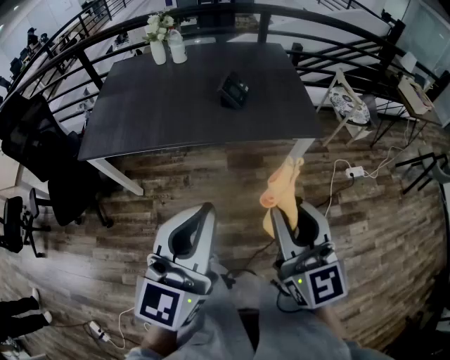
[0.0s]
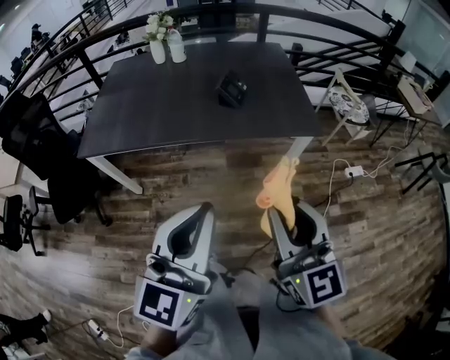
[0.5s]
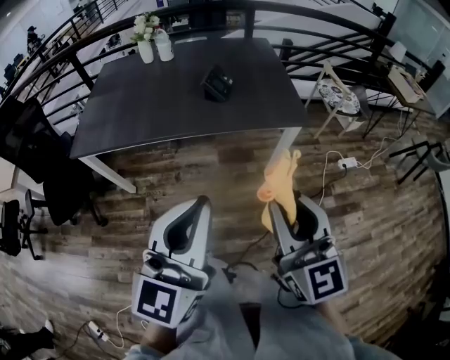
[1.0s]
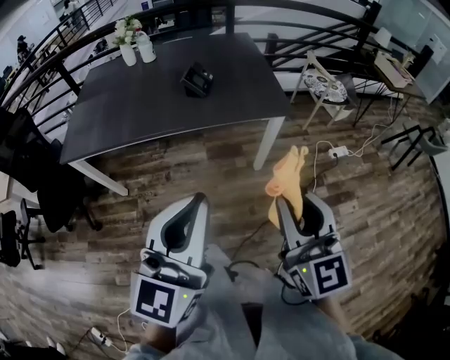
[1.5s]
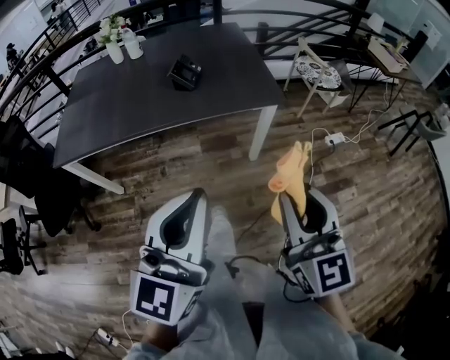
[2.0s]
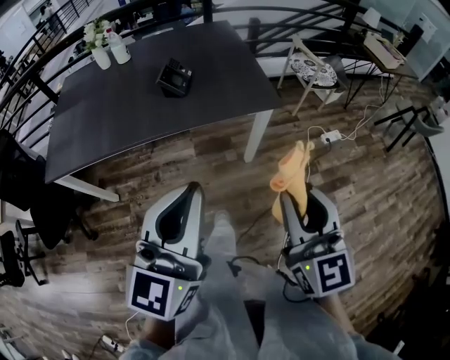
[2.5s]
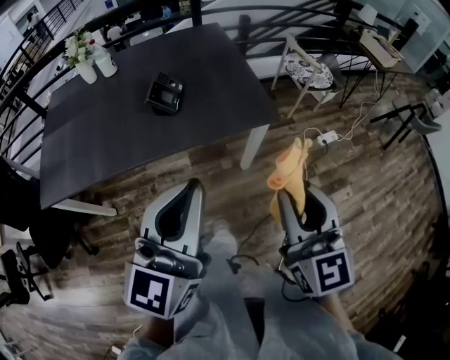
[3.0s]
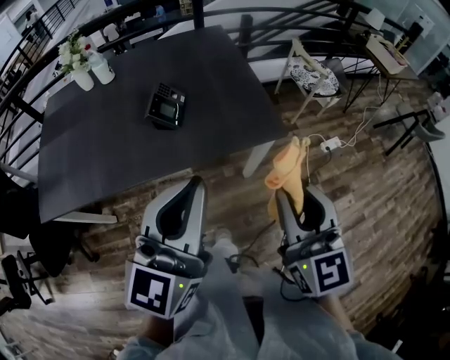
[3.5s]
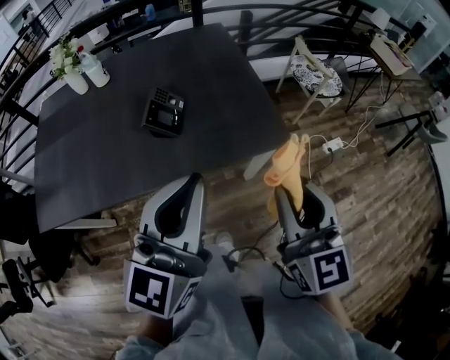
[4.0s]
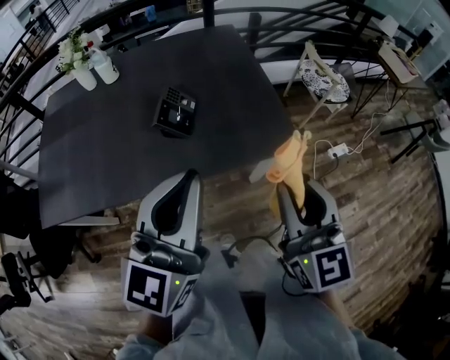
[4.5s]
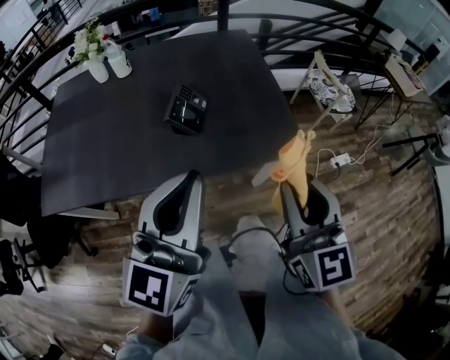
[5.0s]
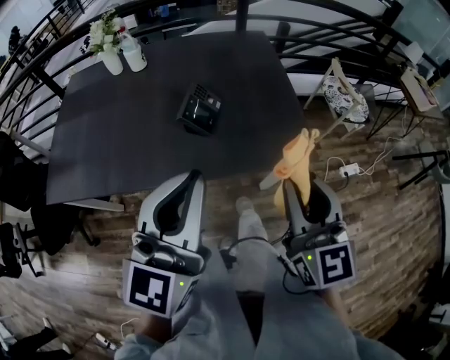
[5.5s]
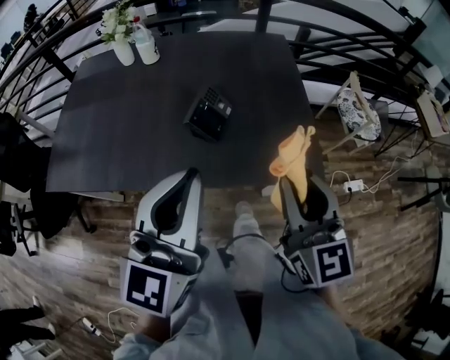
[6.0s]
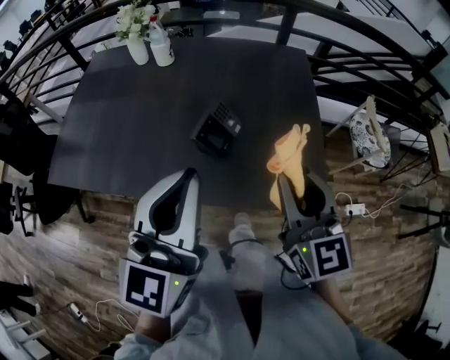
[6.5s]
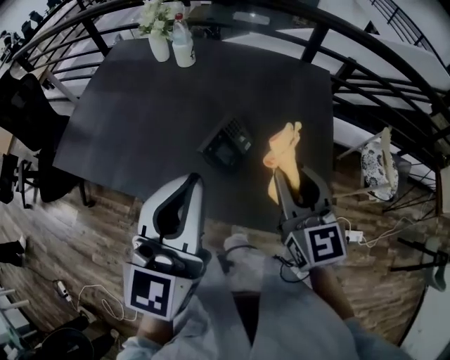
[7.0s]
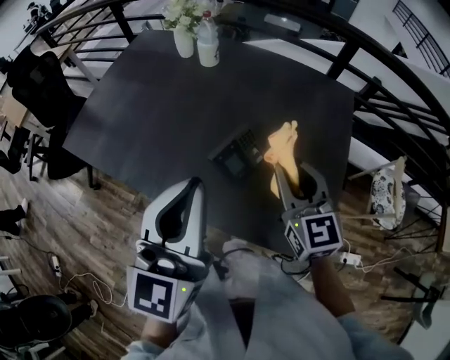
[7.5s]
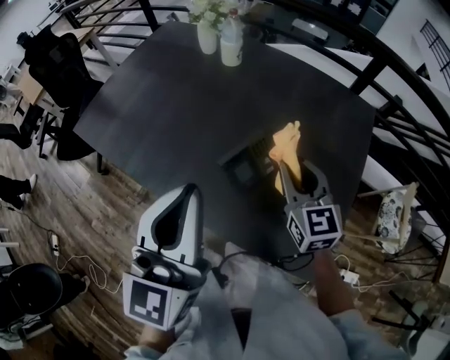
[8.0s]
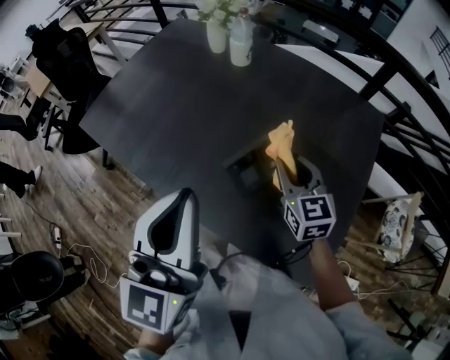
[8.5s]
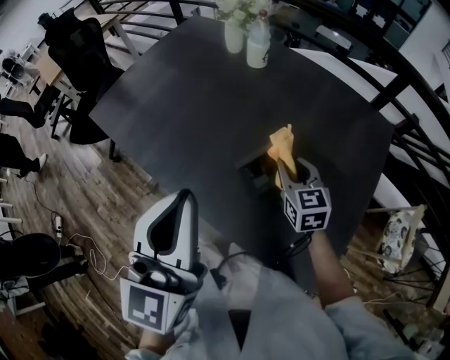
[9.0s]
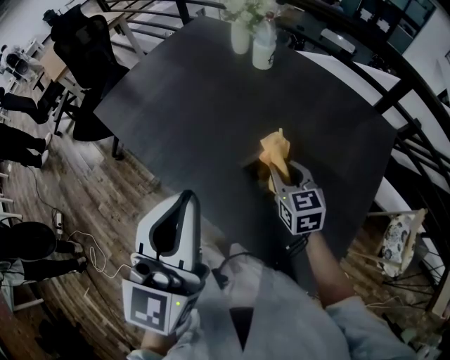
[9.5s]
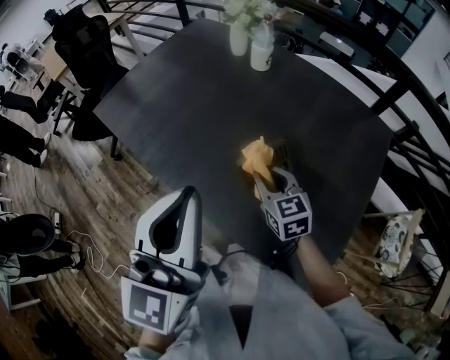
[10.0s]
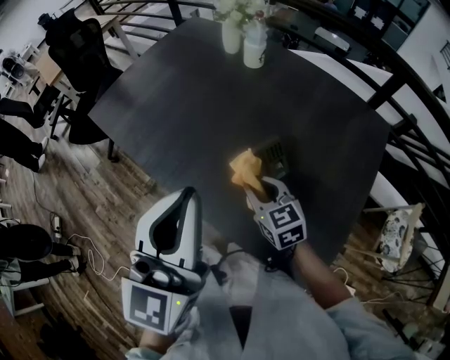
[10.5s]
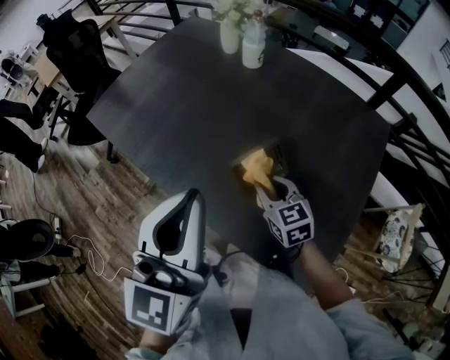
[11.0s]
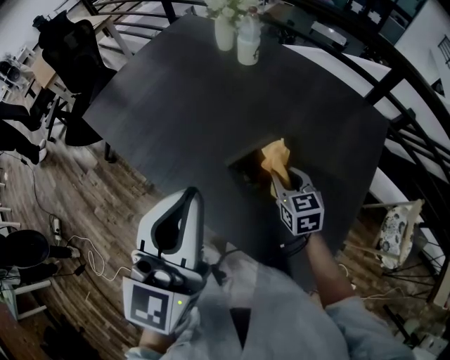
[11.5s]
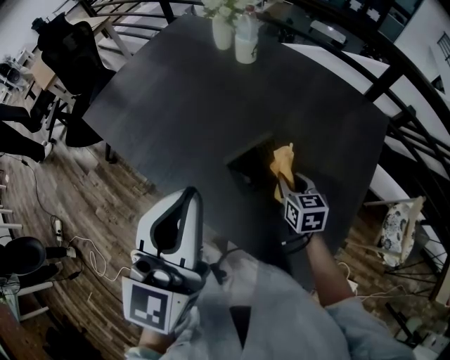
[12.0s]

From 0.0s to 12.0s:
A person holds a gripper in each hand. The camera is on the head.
From 0.0s to 2.0s: Both grippers travel together to the right, roughly 10 cm.
From 2.0s to 4.0s: Both grippers travel together forward, some 25 cm.
From 4.0s to 6.0s: The left gripper shifts some 5 cm to the left, while the right gripper is displaced forward and to the left by some 10 cm.
From 6.0s to 8.0s: The right gripper changes place by roughly 30 cm, and turns by approximately 30 degrees, while the left gripper moves approximately 15 cm, and swivels roughly 30 degrees.
From 8.0s to 10.0s: The right gripper goes some 15 cm to the left and downward, and turns by roughly 20 degrees.
From 10.0s to 12.0s: The right gripper heads to the right and downward, covering roughly 15 cm.

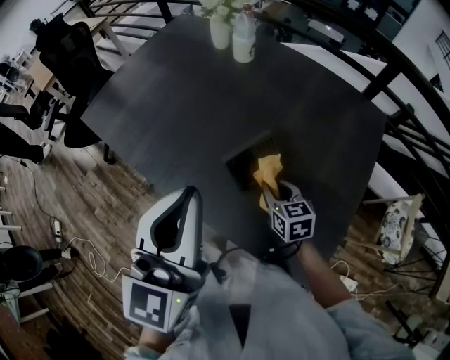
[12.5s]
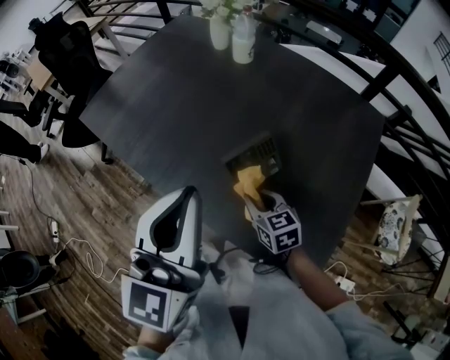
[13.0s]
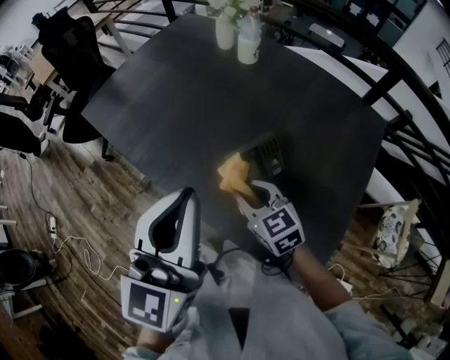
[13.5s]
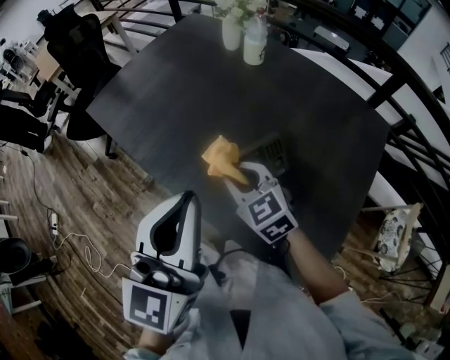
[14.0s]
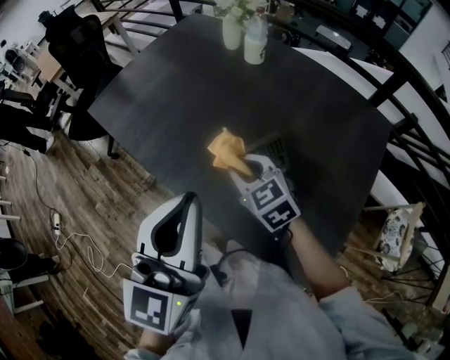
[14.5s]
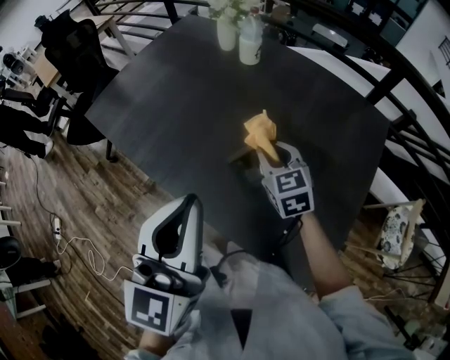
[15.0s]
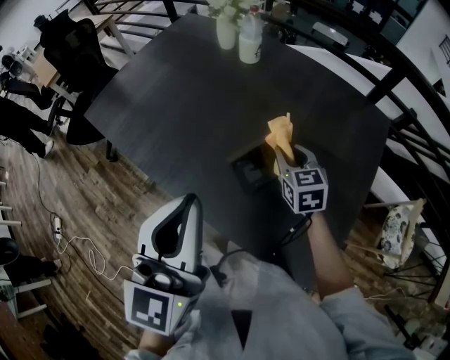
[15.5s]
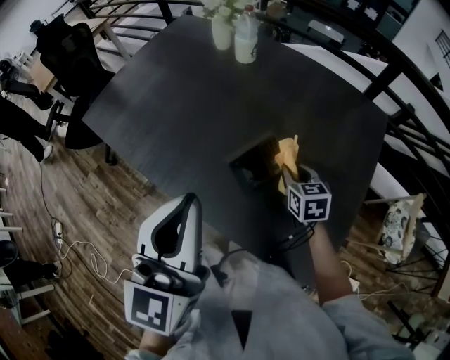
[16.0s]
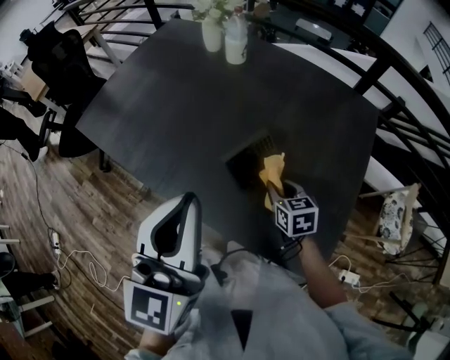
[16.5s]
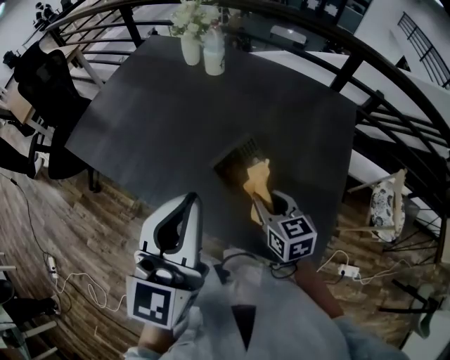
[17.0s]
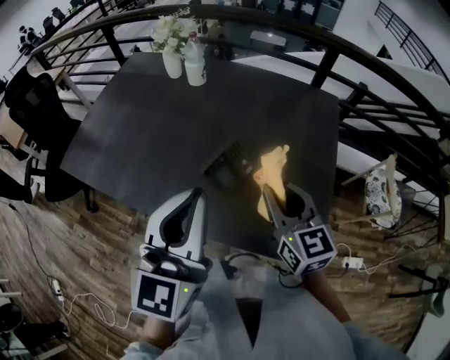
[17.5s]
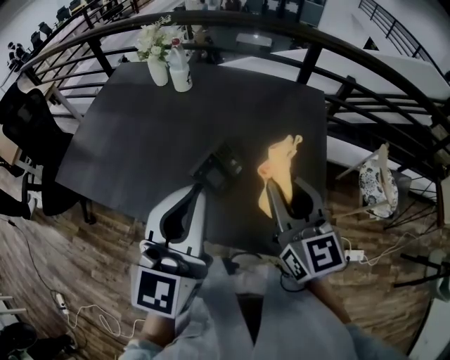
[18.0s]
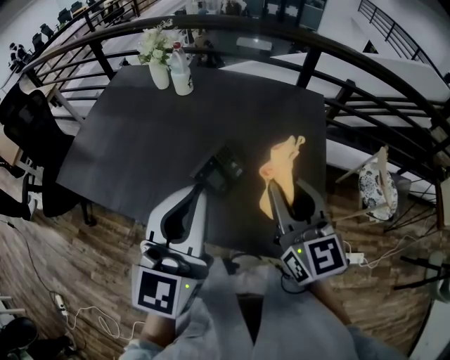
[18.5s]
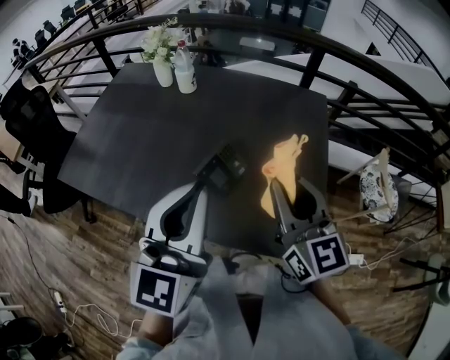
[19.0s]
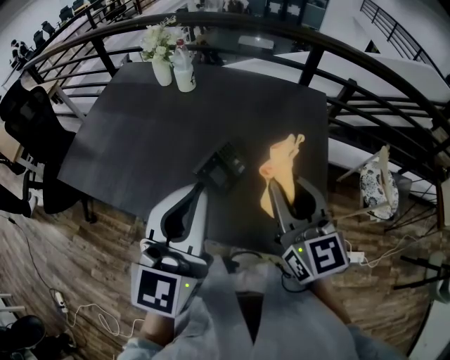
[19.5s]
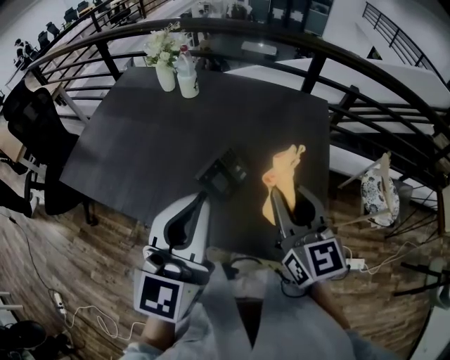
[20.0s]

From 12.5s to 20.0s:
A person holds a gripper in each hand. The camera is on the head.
From 12.5s to 14.5s: The right gripper heads to the left, upward and forward, covering about 15 cm, and rotates roughly 30 degrees.
From 14.5s to 16.5s: The right gripper goes some 15 cm to the right and downward, and rotates some 40 degrees.
From 16.5s to 18.0s: The left gripper is displaced to the right by roughly 5 cm, while the right gripper is displaced upward by approximately 25 cm, and angles its fingers upward, by about 40 degrees.
From 18.0s to 20.0s: The grippers stay close to where they were, moving slightly.

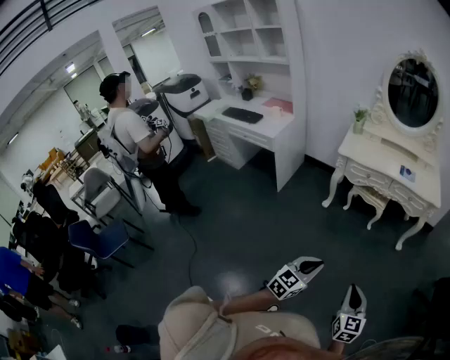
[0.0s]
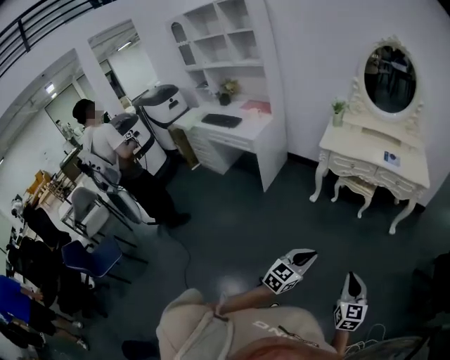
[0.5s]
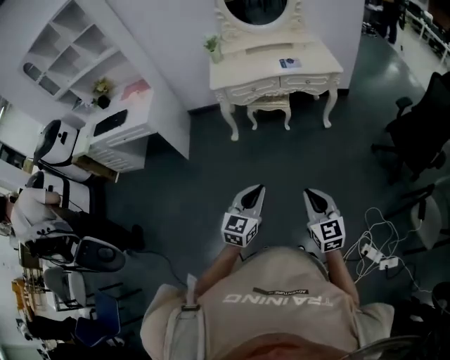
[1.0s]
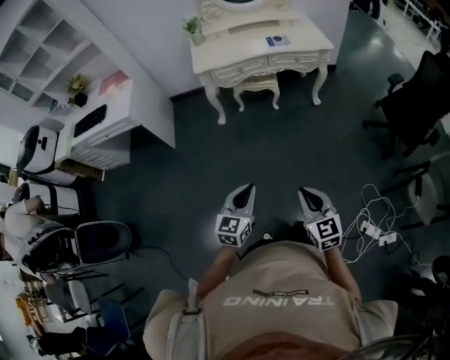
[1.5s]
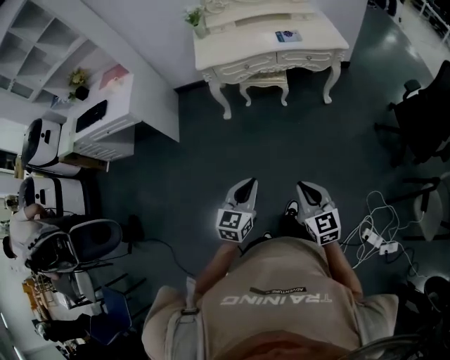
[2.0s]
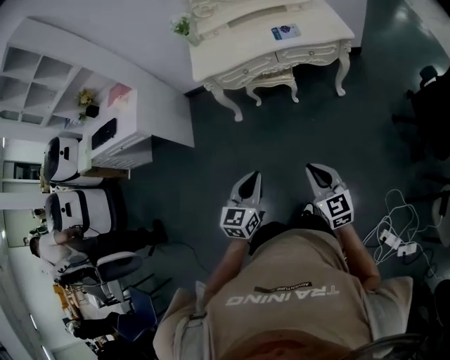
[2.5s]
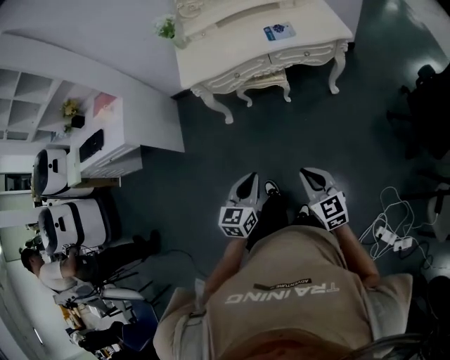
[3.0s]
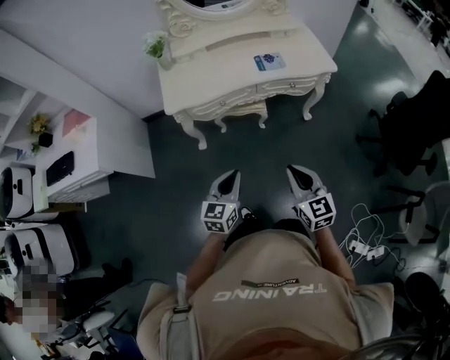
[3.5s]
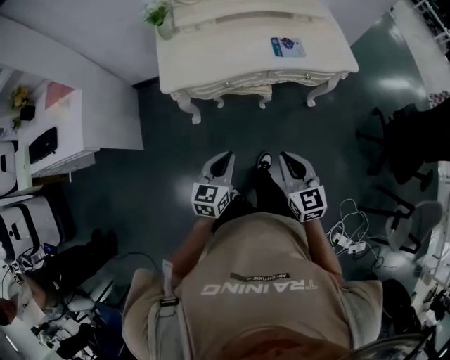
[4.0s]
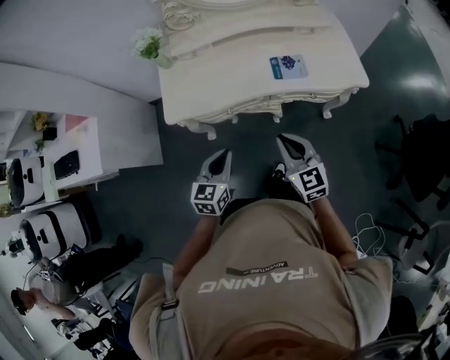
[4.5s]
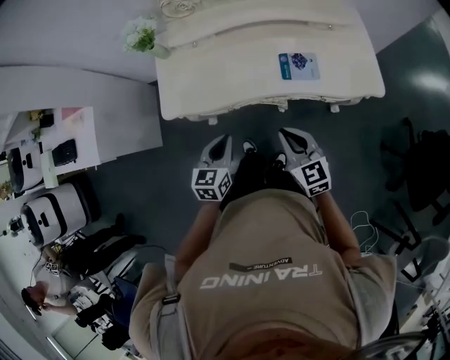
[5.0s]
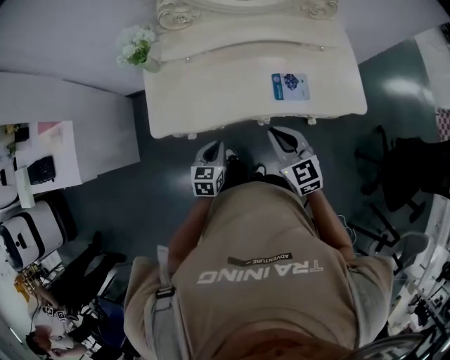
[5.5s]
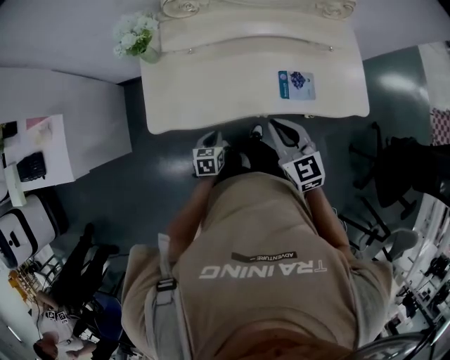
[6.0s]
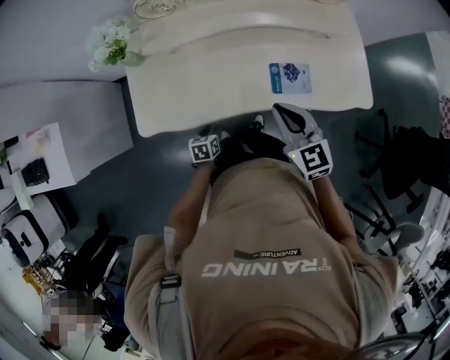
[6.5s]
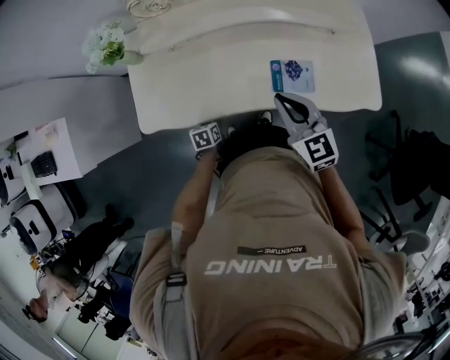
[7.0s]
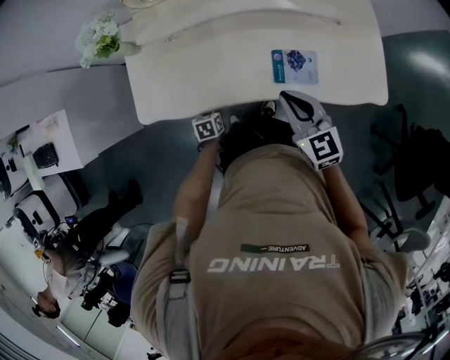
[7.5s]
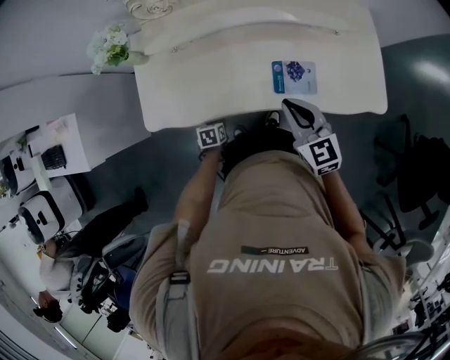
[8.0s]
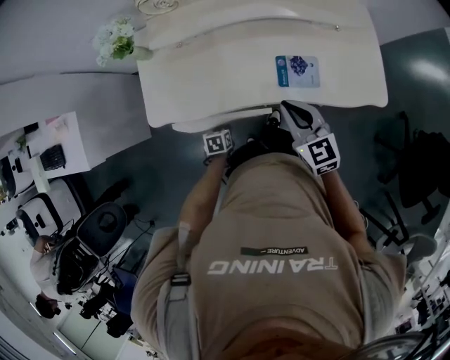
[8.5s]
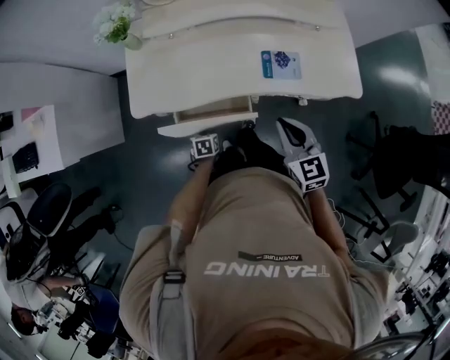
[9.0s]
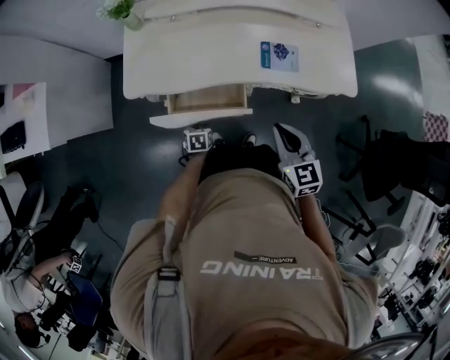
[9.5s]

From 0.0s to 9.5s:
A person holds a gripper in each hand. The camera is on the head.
From 0.0s to 2.0s: The two grippers go approximately 15 cm forward.
From 2.0s to 4.0s: Both grippers are carried forward, some 50 cm.
From 4.0s to 5.5s: Both grippers travel together forward, roughly 30 cm.
From 5.5s to 7.5s: The left gripper shifts roughly 20 cm downward, turns by roughly 30 degrees, and opens. The right gripper heads forward, to the right and downward, covering roughly 15 cm.
From 7.5s to 9.5s: The grippers both shift backward by some 20 cm.
